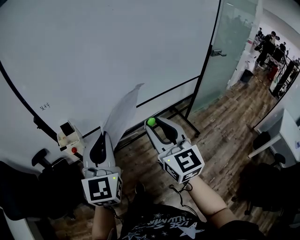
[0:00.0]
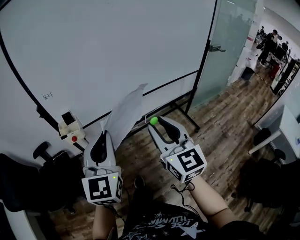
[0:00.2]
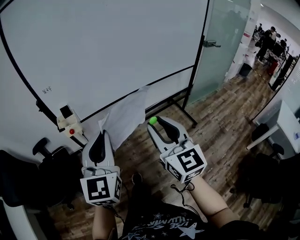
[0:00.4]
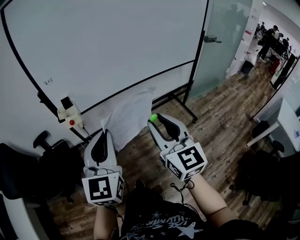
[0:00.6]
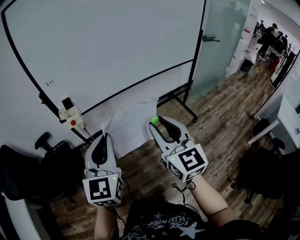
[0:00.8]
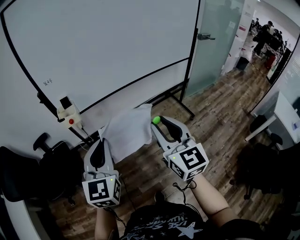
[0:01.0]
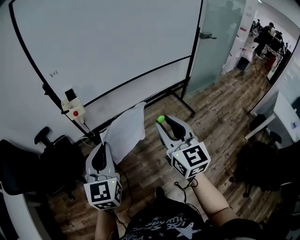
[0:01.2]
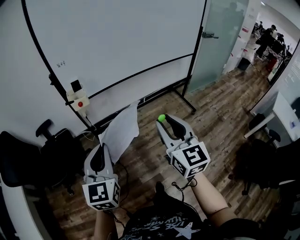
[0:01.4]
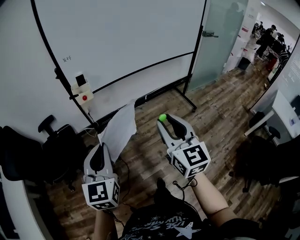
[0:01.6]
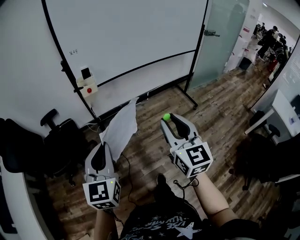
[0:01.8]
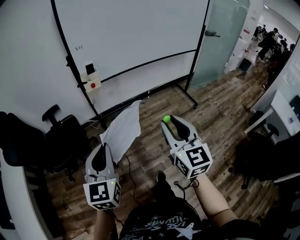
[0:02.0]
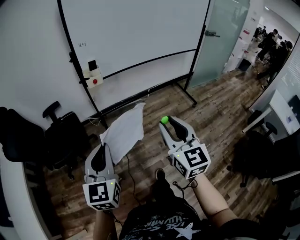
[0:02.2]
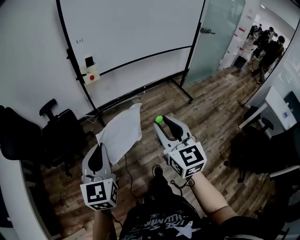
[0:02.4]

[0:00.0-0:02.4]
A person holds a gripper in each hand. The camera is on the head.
0:00.0 to 0:01.2: The two grippers go about 20 cm backward.
0:01.2 to 0:02.4: The grippers both shift backward and to the left by about 25 cm.

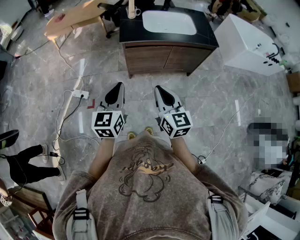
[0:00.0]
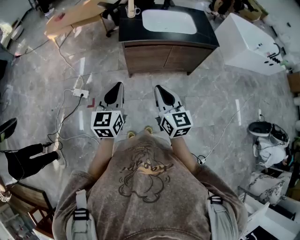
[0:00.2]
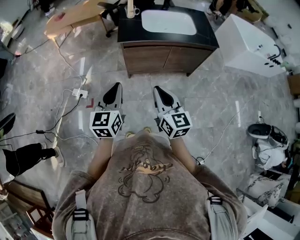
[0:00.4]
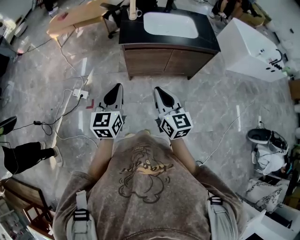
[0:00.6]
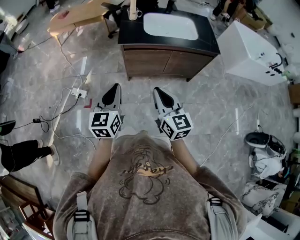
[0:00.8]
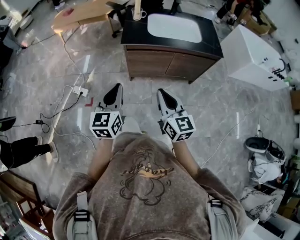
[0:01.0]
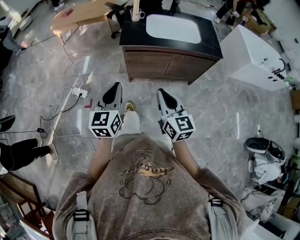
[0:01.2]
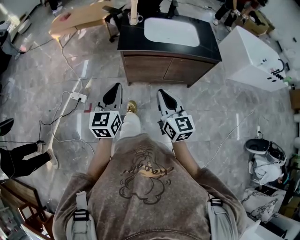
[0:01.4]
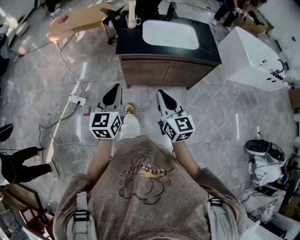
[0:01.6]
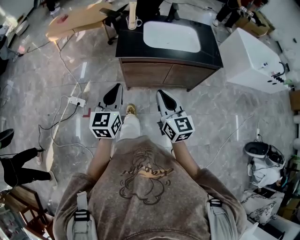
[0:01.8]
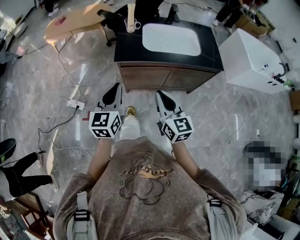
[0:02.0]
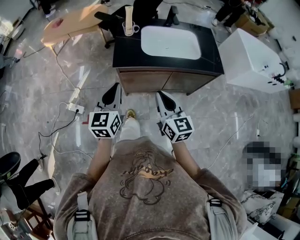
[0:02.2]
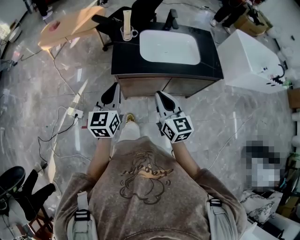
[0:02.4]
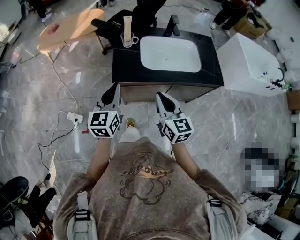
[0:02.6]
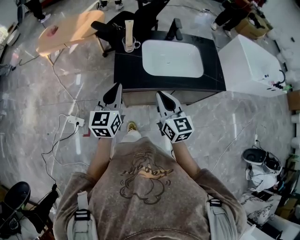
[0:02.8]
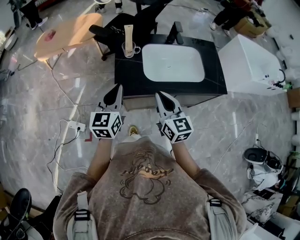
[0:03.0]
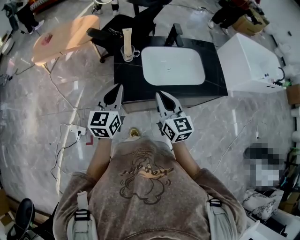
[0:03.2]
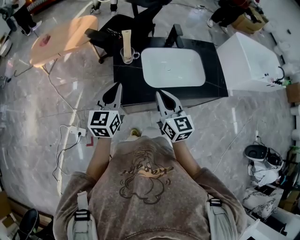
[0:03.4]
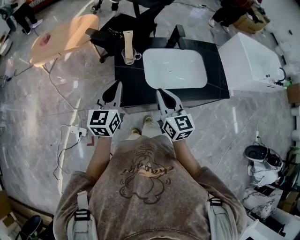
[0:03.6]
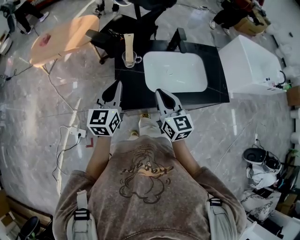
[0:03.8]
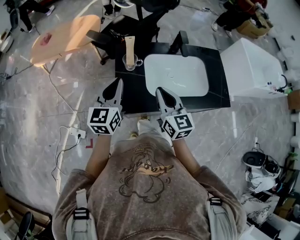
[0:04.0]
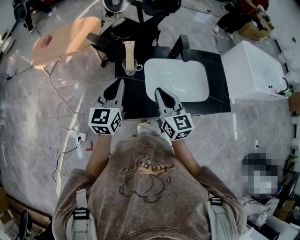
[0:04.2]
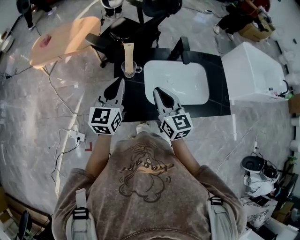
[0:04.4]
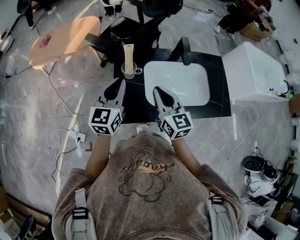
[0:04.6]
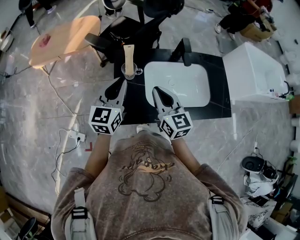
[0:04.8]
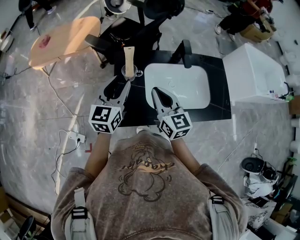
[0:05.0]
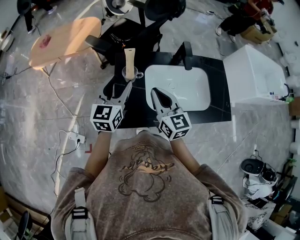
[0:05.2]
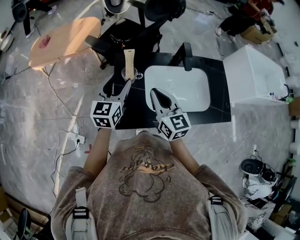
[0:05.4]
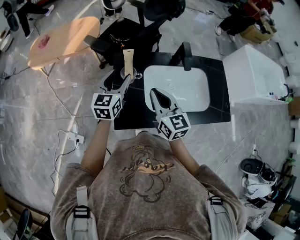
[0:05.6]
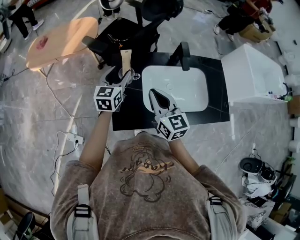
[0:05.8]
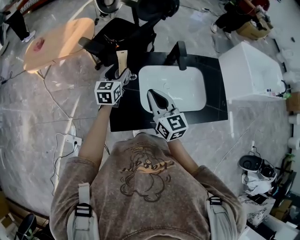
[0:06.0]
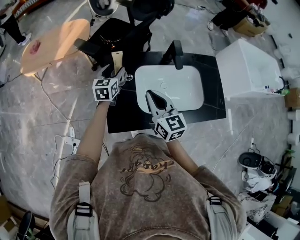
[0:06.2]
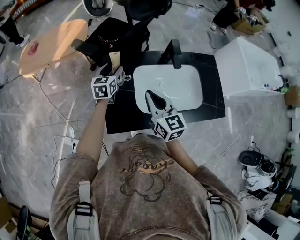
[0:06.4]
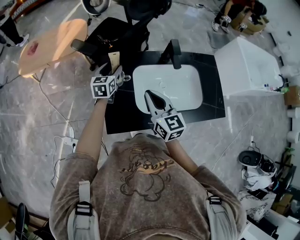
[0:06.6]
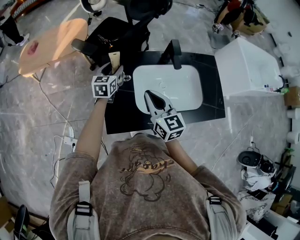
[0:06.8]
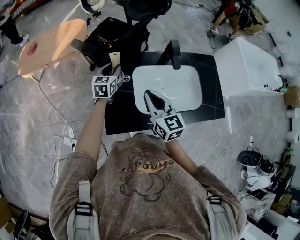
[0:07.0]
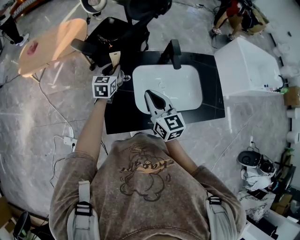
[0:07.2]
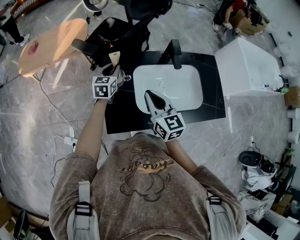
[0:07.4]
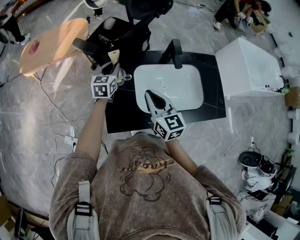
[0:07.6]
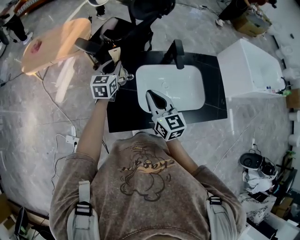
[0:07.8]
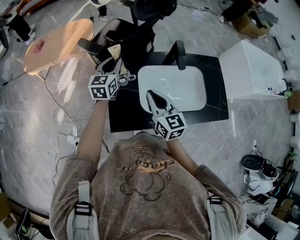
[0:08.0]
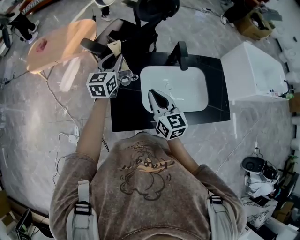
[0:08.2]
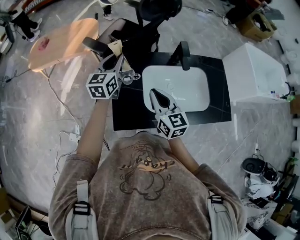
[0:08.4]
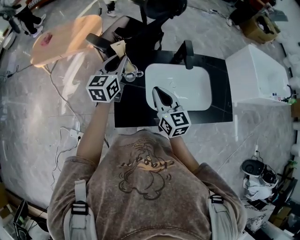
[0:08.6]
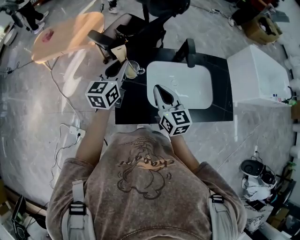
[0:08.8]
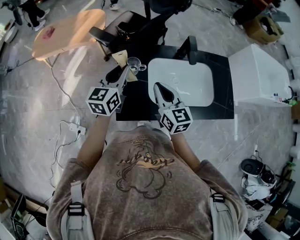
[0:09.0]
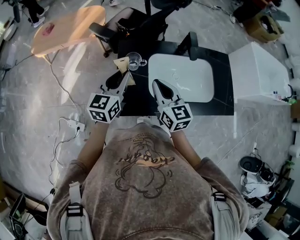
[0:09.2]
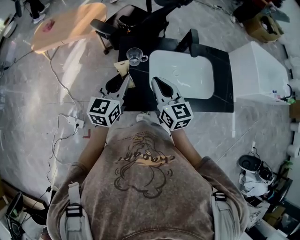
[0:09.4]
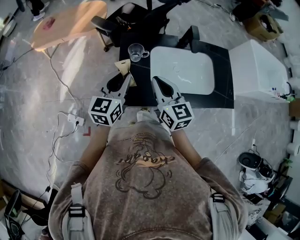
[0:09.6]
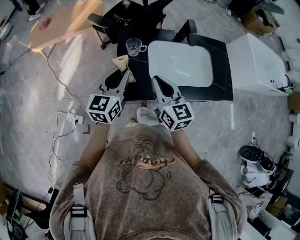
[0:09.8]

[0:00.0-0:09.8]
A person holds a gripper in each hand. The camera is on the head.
0:00.0 to 0:01.4: The right gripper goes roughly 10 cm forward and to the right, while the left gripper is displaced forward by approximately 5 cm.
0:01.4 to 0:02.8: The grippers both shift forward by some 30 cm.
0:02.8 to 0:04.2: Both grippers travel together forward, roughly 20 cm.
0:04.2 to 0:05.6: The left gripper travels forward and downward by some 10 cm, and opens its fingers. The right gripper heads forward, covering about 5 cm.
0:05.6 to 0:07.0: The left gripper heads forward and downward, covering roughly 15 cm, and closes up.
0:07.0 to 0:08.4: The left gripper shifts about 10 cm upward.
0:08.4 to 0:09.8: The right gripper is displaced backward by roughly 10 cm; the left gripper moves backward, roughly 20 cm.

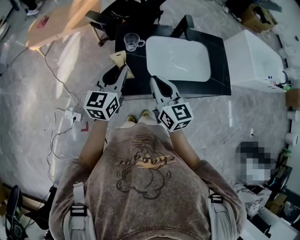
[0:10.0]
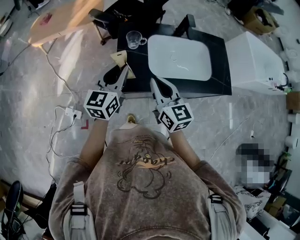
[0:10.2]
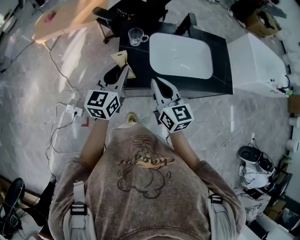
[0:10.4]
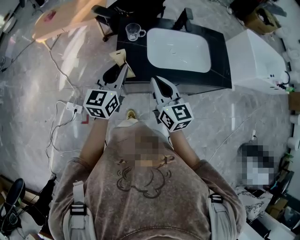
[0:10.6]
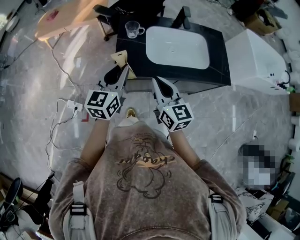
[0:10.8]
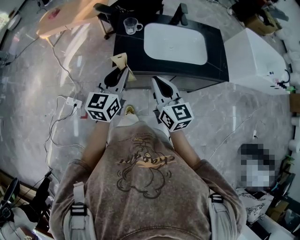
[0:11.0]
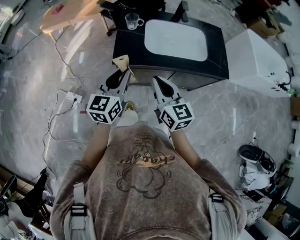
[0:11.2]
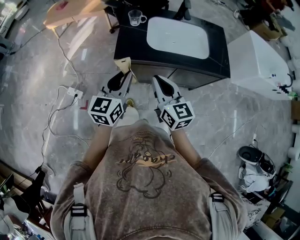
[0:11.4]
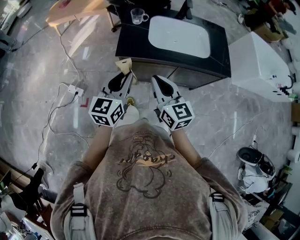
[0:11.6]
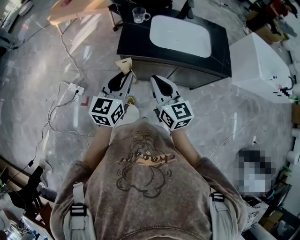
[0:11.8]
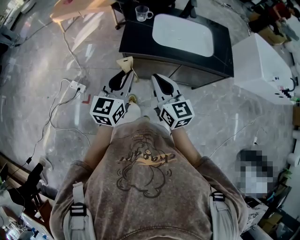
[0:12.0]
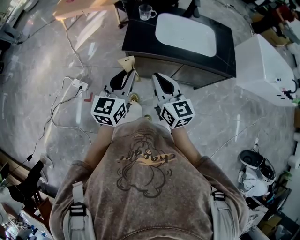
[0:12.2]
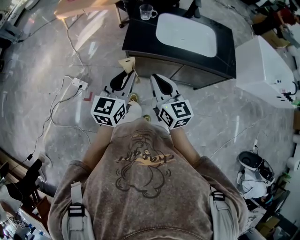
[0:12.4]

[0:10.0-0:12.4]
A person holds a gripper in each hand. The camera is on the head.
0:10.0 to 0:11.2: Both grippers move backward, approximately 20 cm.
0:11.2 to 0:12.4: Both grippers travel together backward, some 5 cm.

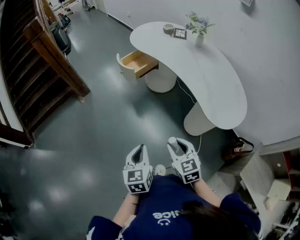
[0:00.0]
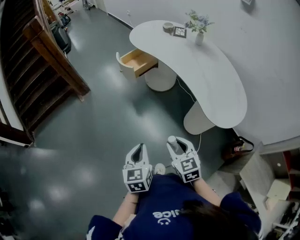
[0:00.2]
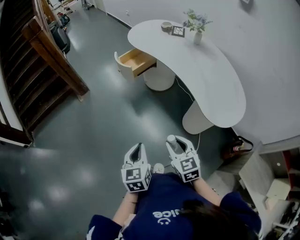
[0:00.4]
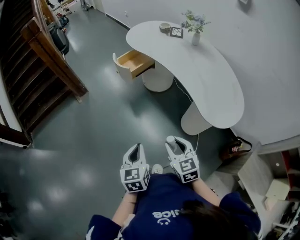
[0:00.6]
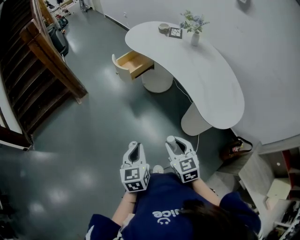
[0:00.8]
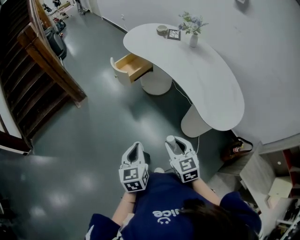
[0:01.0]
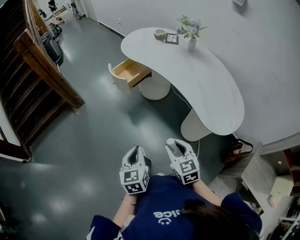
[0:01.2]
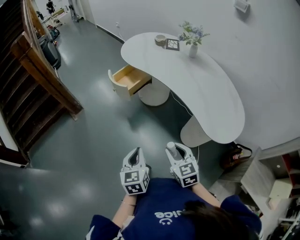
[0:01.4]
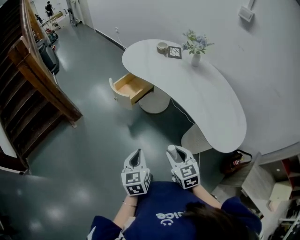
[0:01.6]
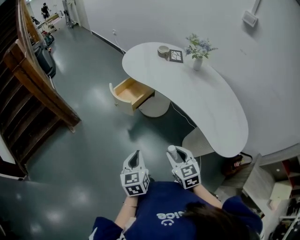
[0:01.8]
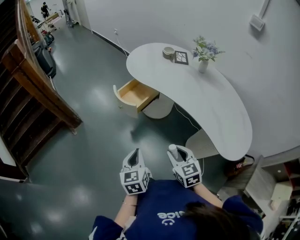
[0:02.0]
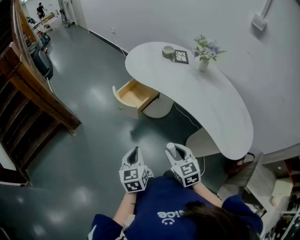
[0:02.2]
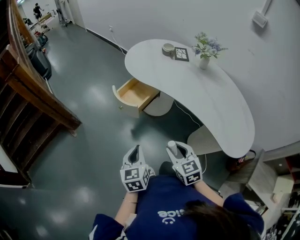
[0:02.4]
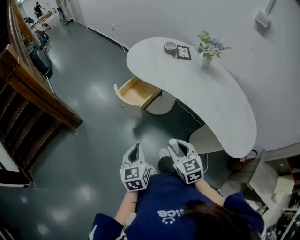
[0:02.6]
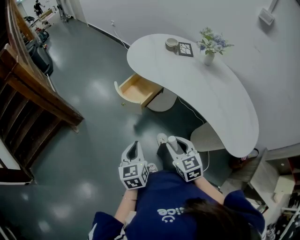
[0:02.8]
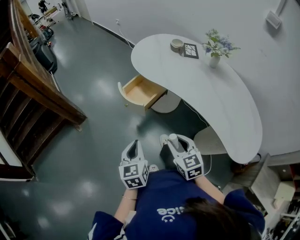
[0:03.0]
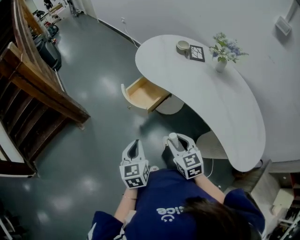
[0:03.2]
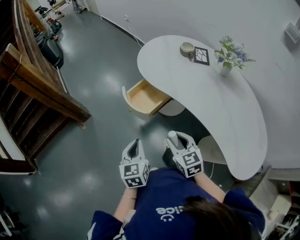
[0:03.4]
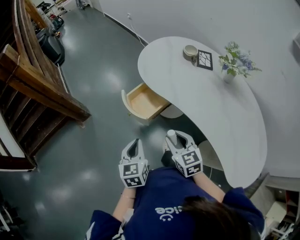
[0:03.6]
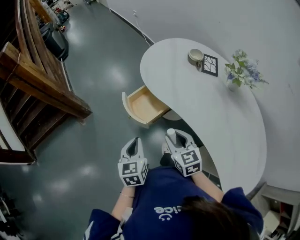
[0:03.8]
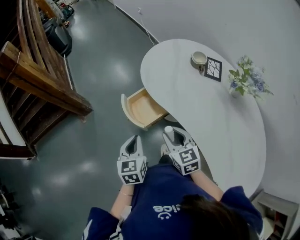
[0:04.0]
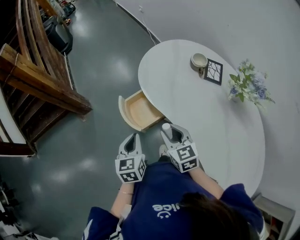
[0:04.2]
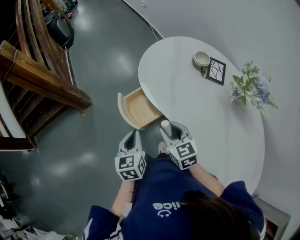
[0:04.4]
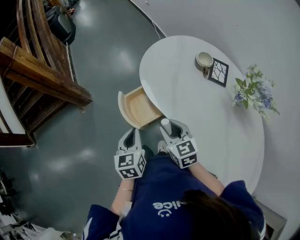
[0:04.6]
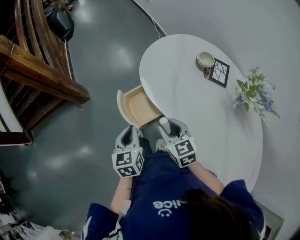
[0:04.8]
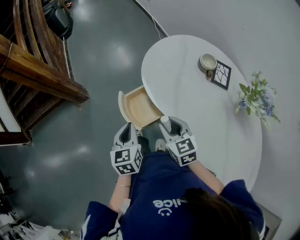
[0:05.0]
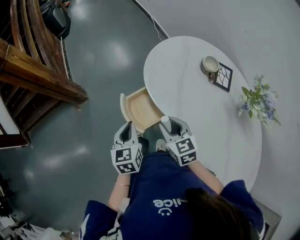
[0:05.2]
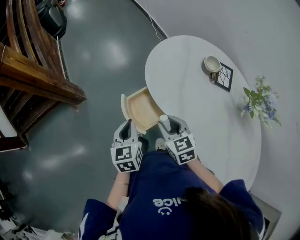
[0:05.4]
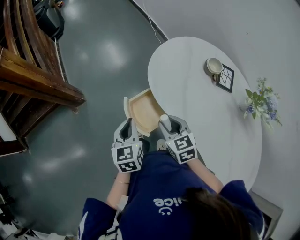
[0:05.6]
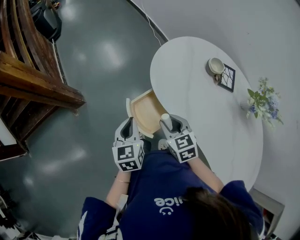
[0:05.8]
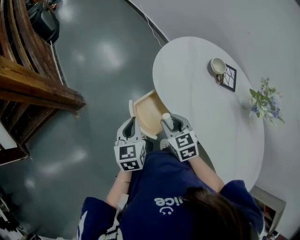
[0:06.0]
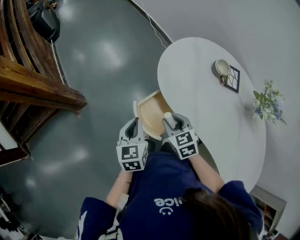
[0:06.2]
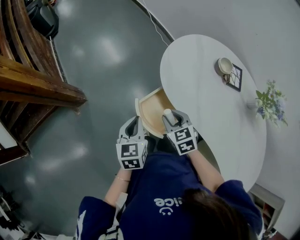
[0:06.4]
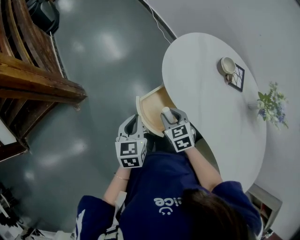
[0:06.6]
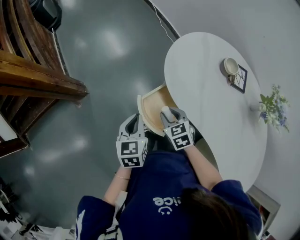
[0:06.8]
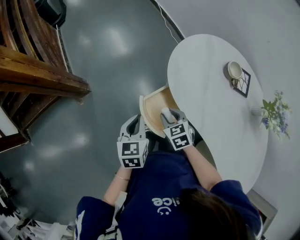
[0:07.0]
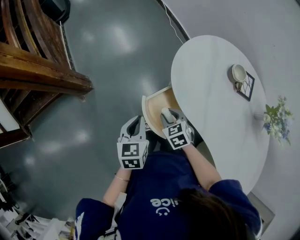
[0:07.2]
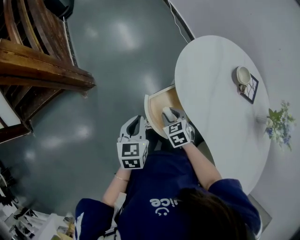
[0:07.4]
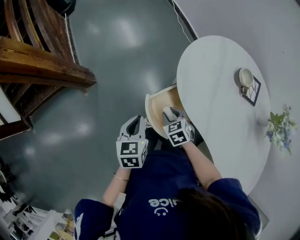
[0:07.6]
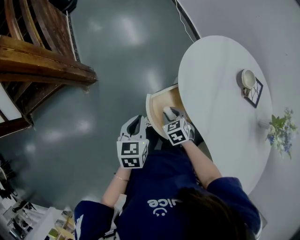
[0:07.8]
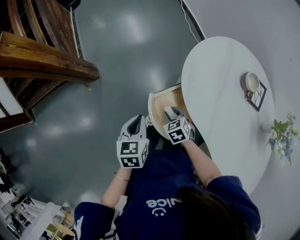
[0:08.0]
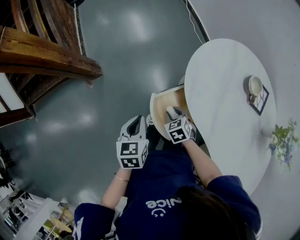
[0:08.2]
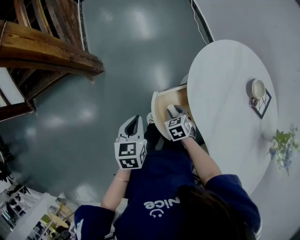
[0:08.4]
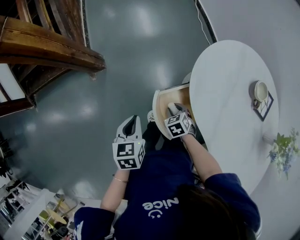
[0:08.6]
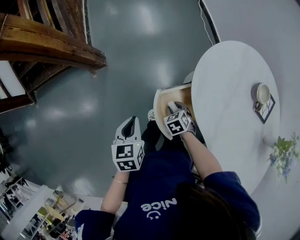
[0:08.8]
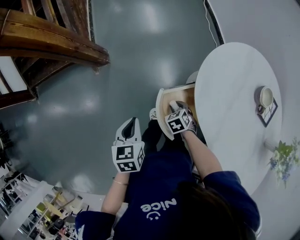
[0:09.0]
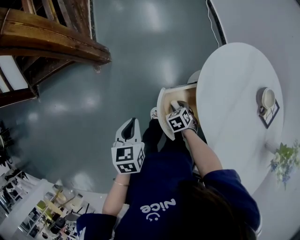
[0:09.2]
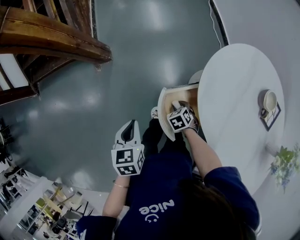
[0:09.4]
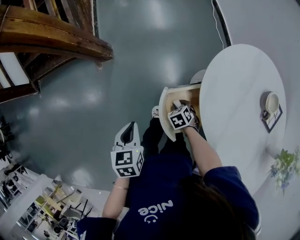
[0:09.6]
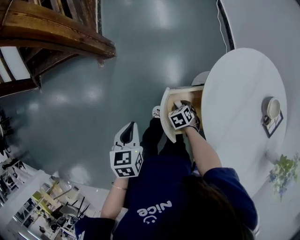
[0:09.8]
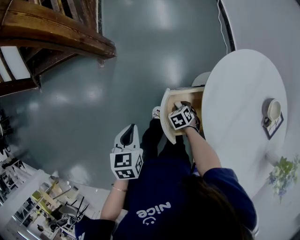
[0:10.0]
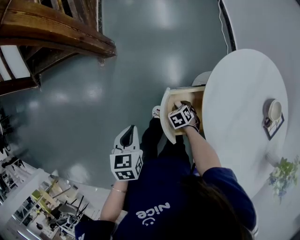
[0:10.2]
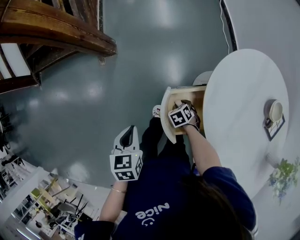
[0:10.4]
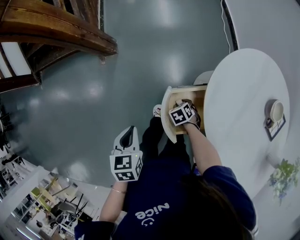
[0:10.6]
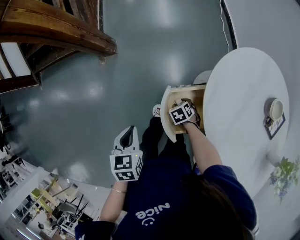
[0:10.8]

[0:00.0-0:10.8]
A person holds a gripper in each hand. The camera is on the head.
0:00.0 to 0:01.6: Both grippers move forward, about 15 cm.
0:01.6 to 0:03.0: The grippers both shift forward and to the left by approximately 20 cm.
0:03.0 to 0:04.6: The left gripper moves forward and to the right, roughly 25 cm; the right gripper travels forward by about 30 cm.
0:04.6 to 0:06.2: The two grippers go approximately 15 cm forward and to the left.
0:06.2 to 0:07.8: The left gripper shifts by some 5 cm; the right gripper travels downward by about 10 cm, and turns by approximately 20 degrees.
0:07.8 to 0:09.2: The right gripper moves downward, roughly 10 cm; the left gripper heads to the left, covering about 5 cm.
0:09.2 to 0:10.8: The right gripper travels downward by some 5 cm.
